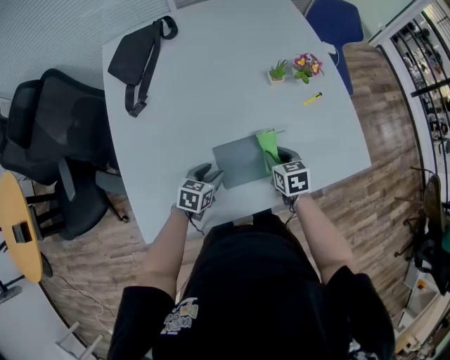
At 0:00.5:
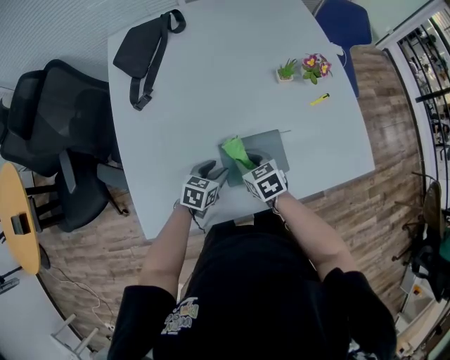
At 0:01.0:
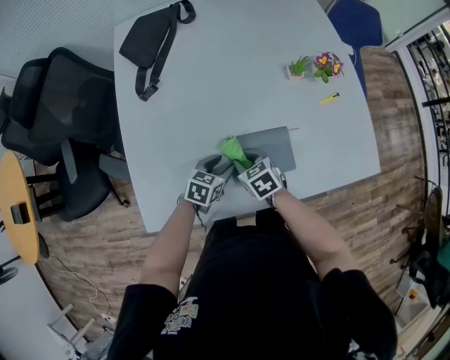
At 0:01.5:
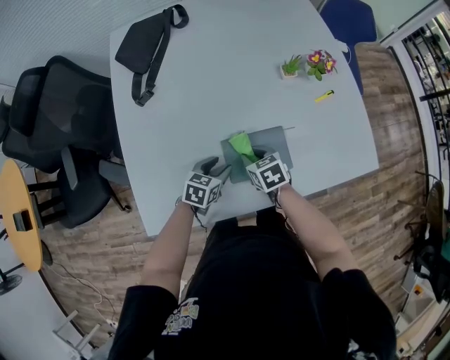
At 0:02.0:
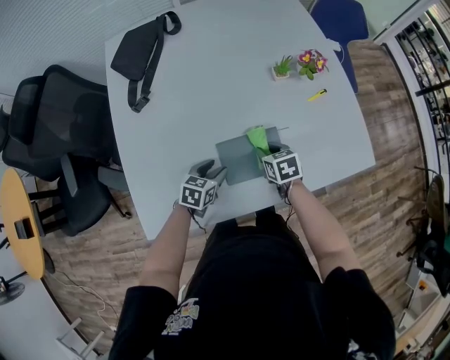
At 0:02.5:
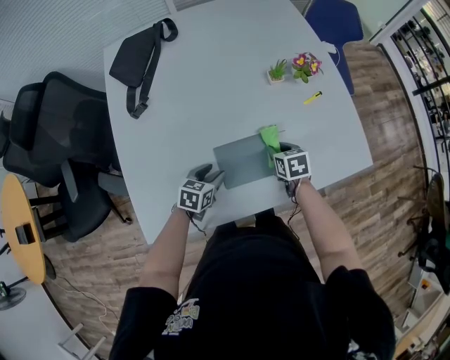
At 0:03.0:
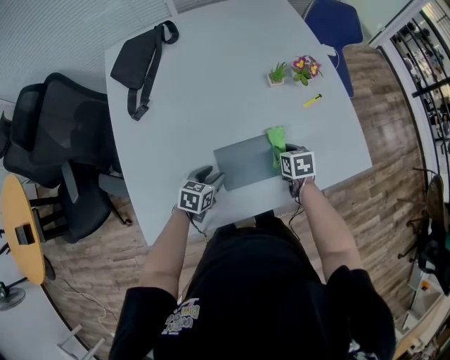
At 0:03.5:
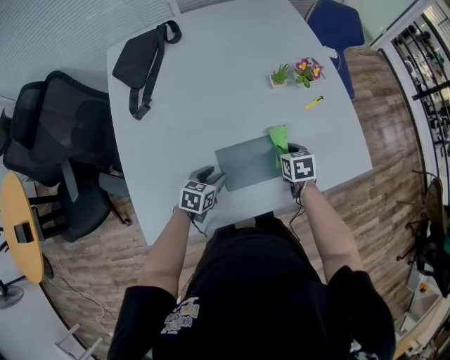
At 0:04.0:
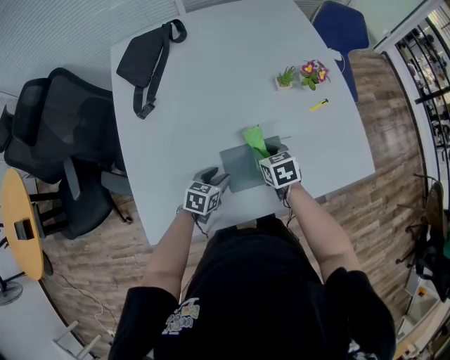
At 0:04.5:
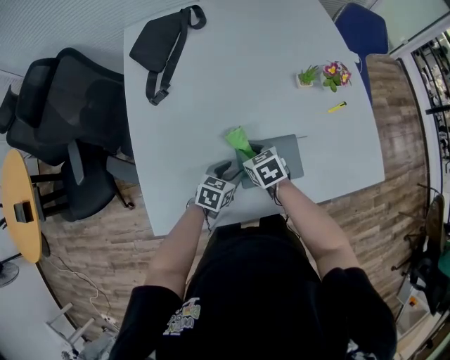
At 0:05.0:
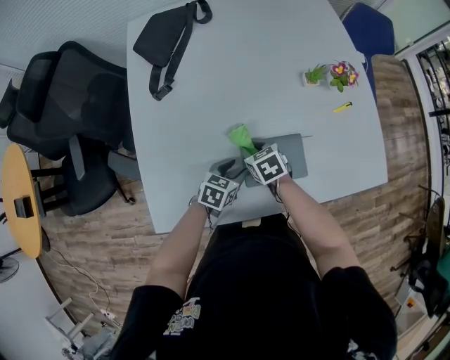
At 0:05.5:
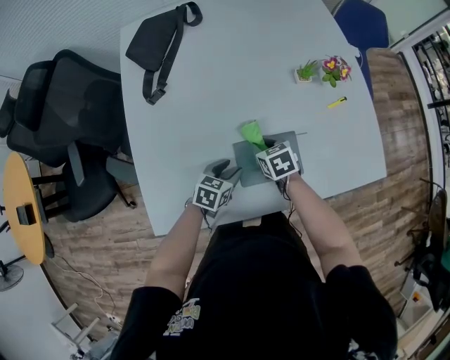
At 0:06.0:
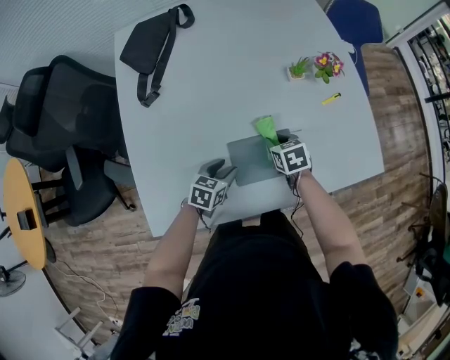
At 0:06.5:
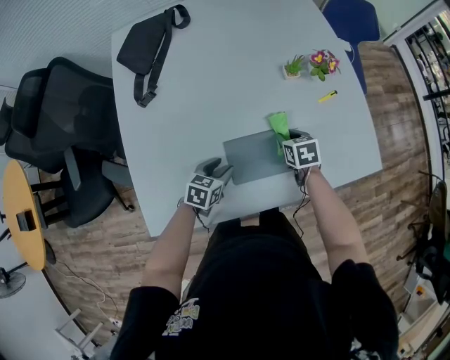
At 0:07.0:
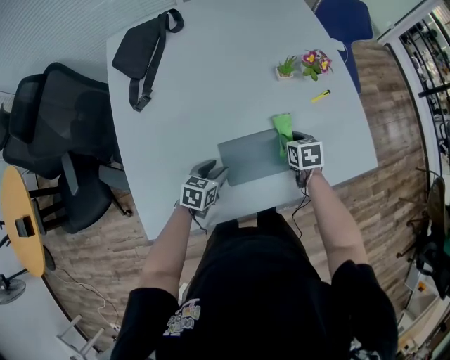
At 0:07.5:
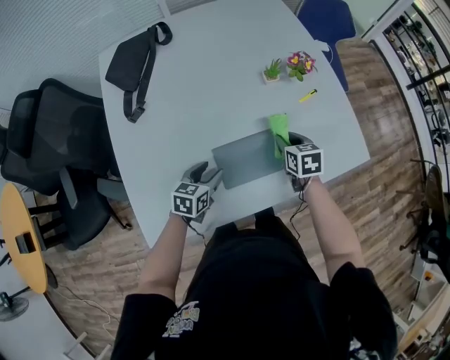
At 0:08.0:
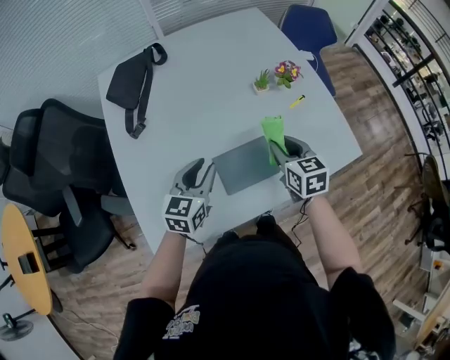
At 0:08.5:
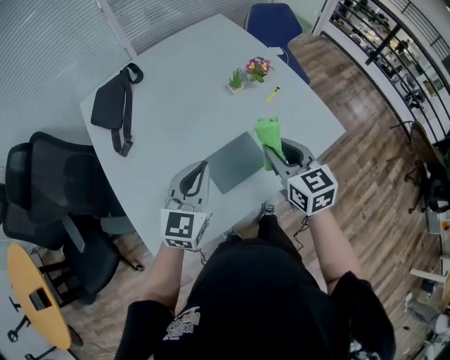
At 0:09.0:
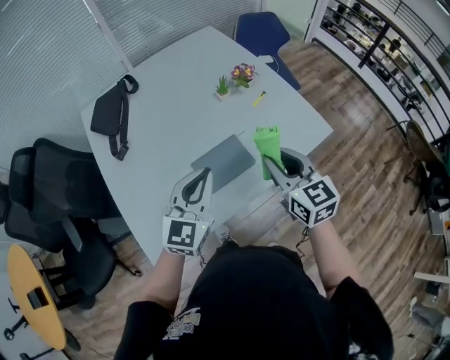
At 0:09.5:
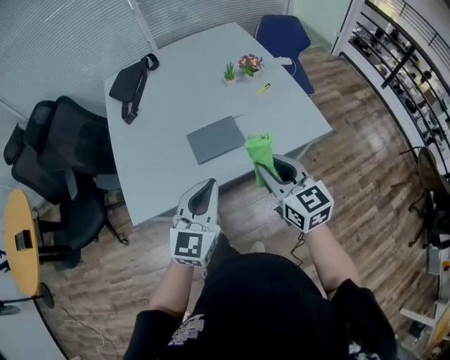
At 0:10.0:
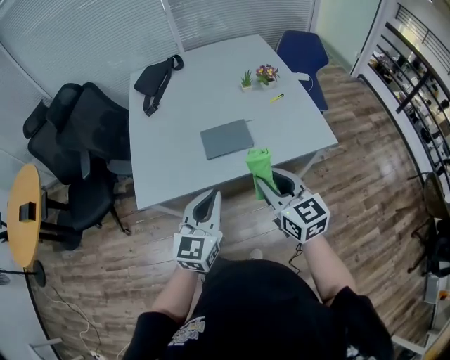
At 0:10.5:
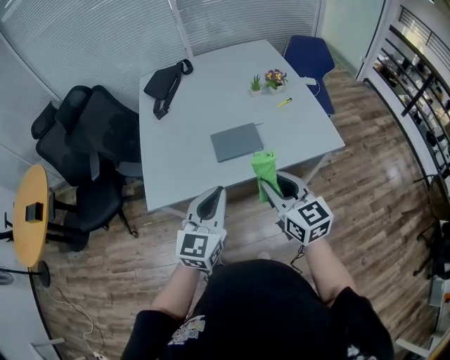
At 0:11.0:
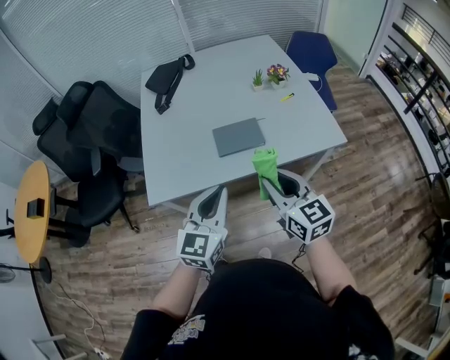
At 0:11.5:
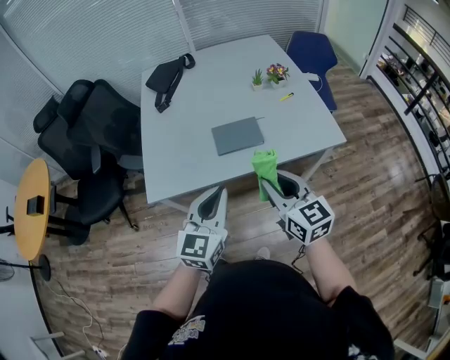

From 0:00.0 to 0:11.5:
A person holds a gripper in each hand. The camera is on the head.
From 0:00.0 to 0:02.0: The right gripper goes to the left and returns, roughly 15 cm each way.
From 0:02.0 to 0:04.0: The right gripper goes to the right and returns, about 10 cm each way.
From 0:04.0 to 0:06.0: The right gripper moves about 10 cm to the left and comes back.
From 0:06.0 to 0:07.5: The right gripper travels to the right and upward by approximately 10 cm.
From 0:07.5 to 0:09.5: The left gripper is displaced upward, backward and to the right by about 35 cm, points its fingers roughly 30 degrees further upward, and closes up. Meanwhile the right gripper moves backward and upward, some 35 cm, and tilts its fingers some 30 degrees upward.
From 0:09.5 to 0:11.5: Both grippers move backward, approximately 10 cm.

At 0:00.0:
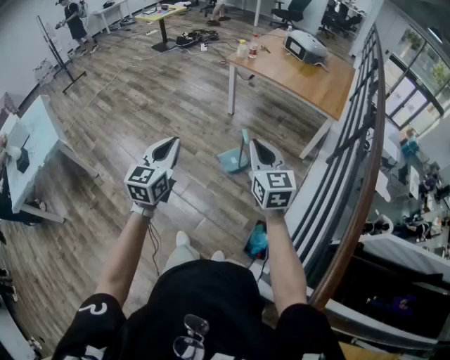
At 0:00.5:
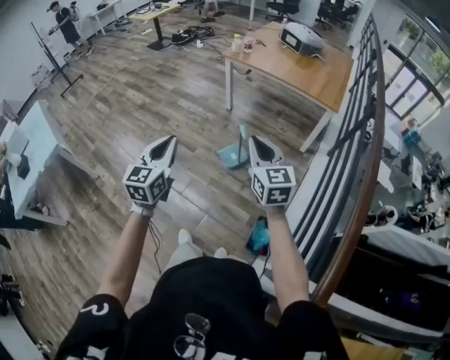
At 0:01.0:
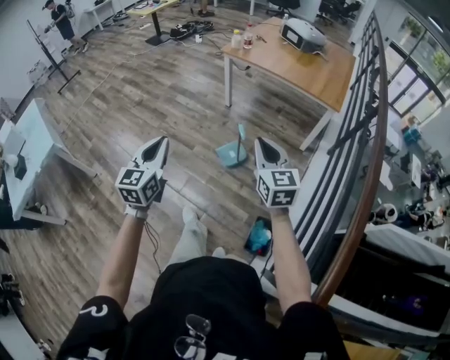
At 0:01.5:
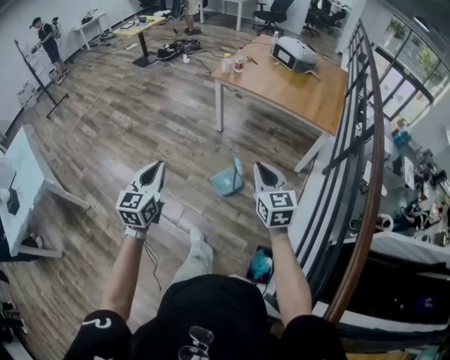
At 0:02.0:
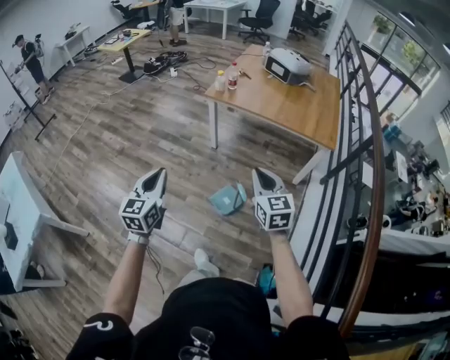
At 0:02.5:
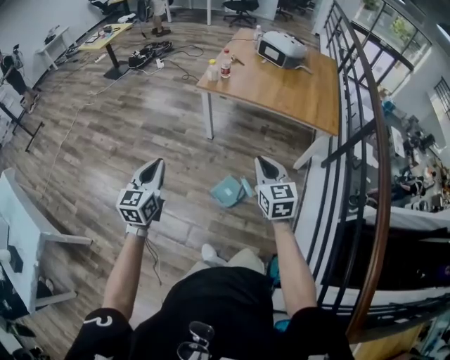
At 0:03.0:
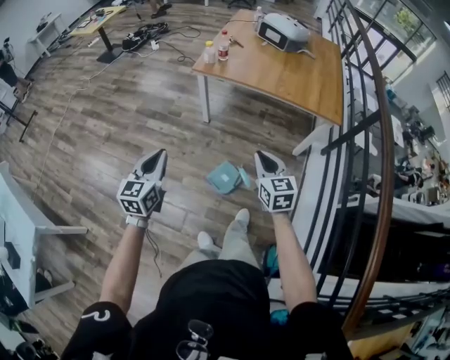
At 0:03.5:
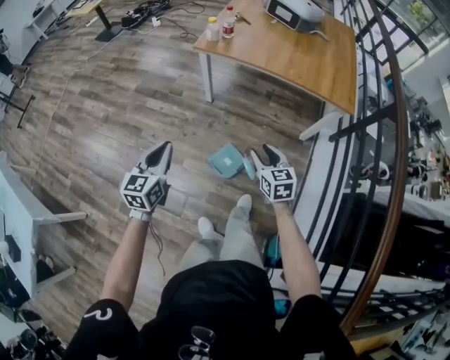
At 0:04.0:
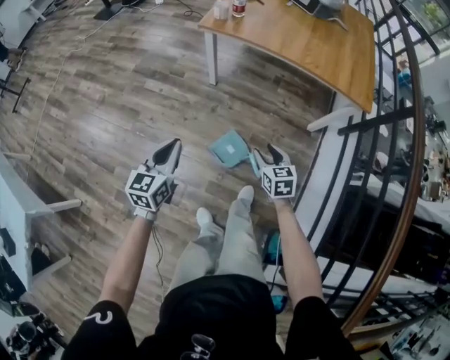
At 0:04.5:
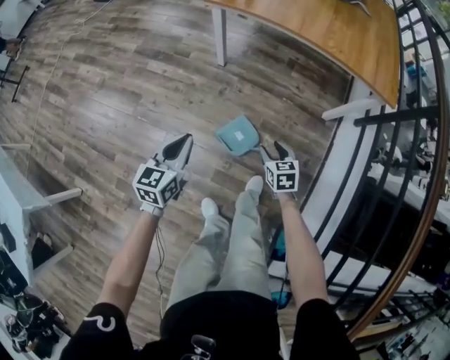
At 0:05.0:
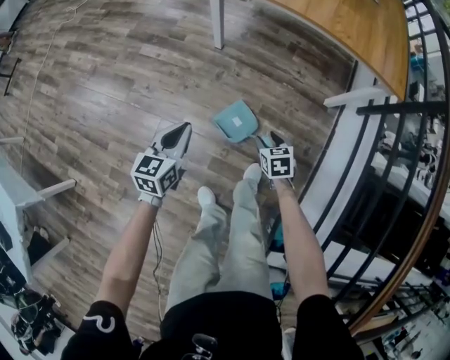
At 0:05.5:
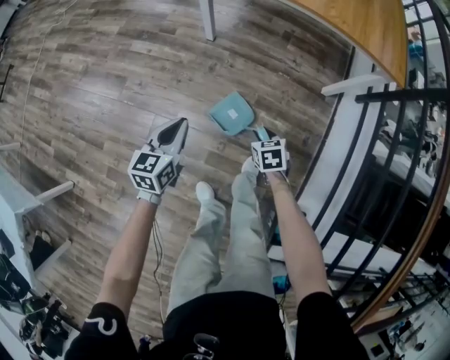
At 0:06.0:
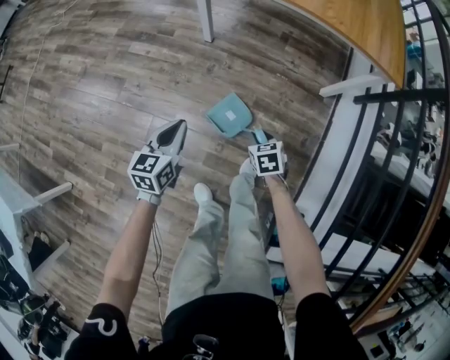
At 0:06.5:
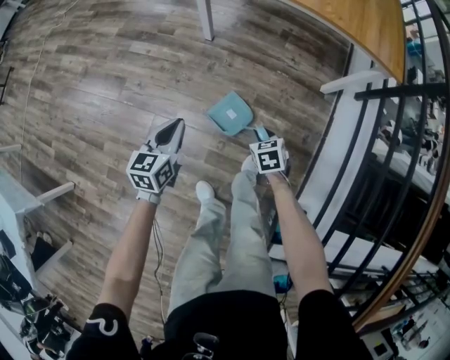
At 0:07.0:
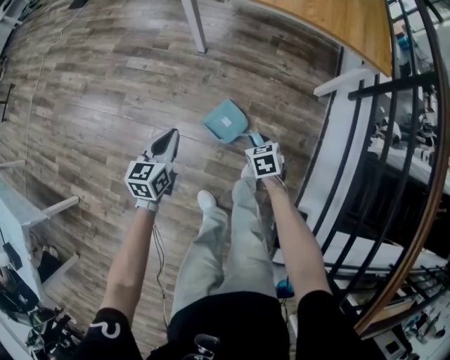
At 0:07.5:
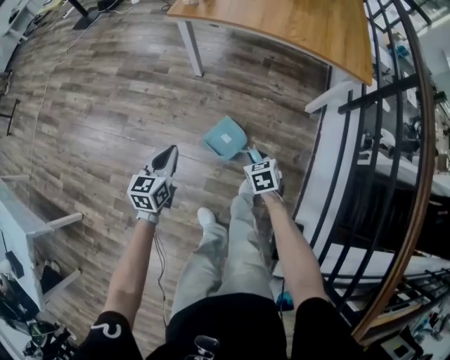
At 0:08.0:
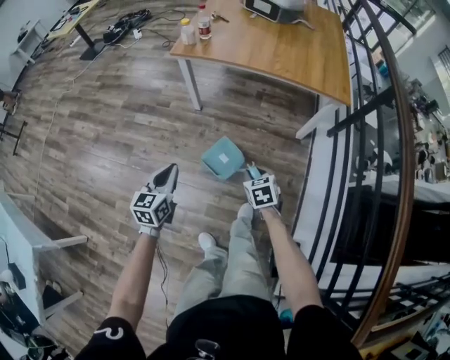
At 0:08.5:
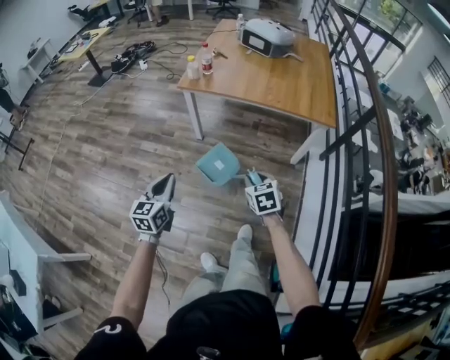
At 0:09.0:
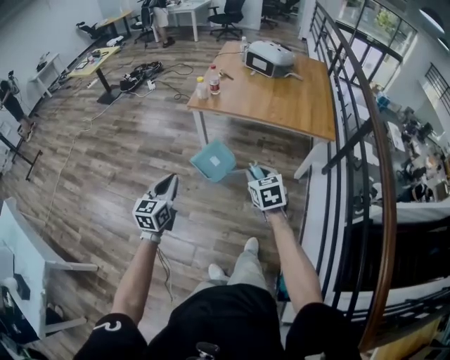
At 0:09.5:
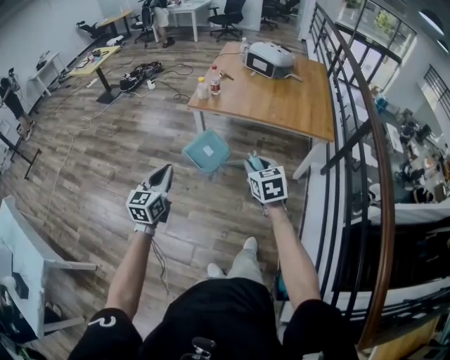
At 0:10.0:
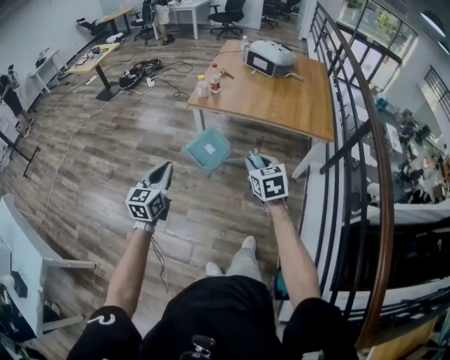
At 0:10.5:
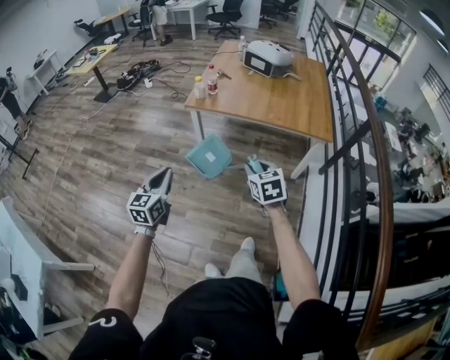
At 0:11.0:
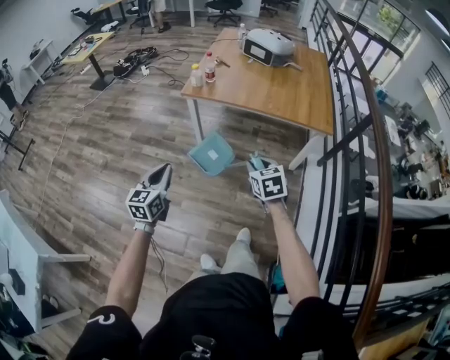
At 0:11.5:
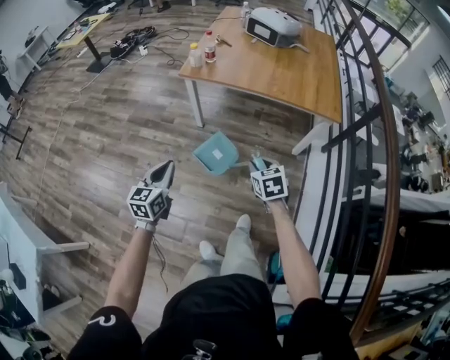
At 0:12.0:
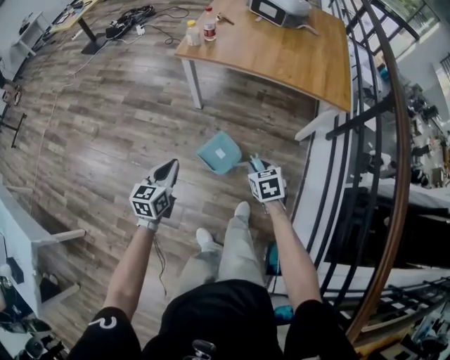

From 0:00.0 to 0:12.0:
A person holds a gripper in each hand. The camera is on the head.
From 0:00.0 to 0:02.0: The grippers both shift forward by some 30 cm.
From 0:02.0 to 0:04.0: The grippers both shift downward and forward by approximately 35 cm. The right gripper rotates some 30 degrees, and opens.
From 0:04.0 to 0:06.0: Both grippers travel together downward, approximately 20 cm. The right gripper changes its angle by approximately 20 degrees, and closes up.
From 0:06.0 to 0:08.0: Both grippers move upward, about 15 cm.
From 0:08.0 to 0:10.0: Both grippers travel together upward, some 25 cm. The right gripper swivels roughly 20 degrees.
From 0:10.0 to 0:12.0: The two grippers go some 20 cm downward. The right gripper changes its angle by some 20 degrees.

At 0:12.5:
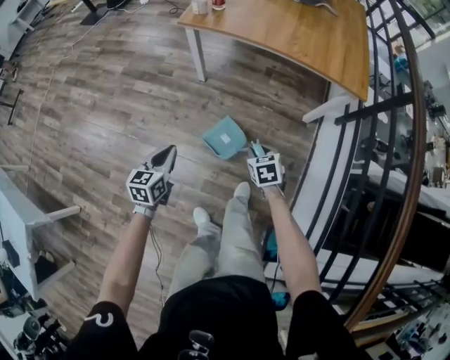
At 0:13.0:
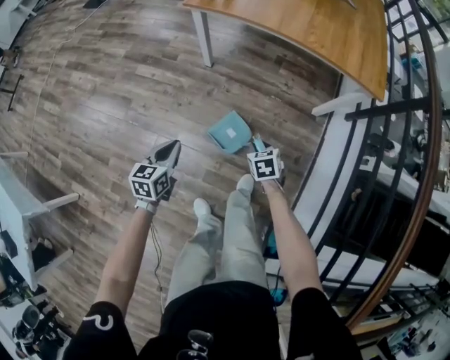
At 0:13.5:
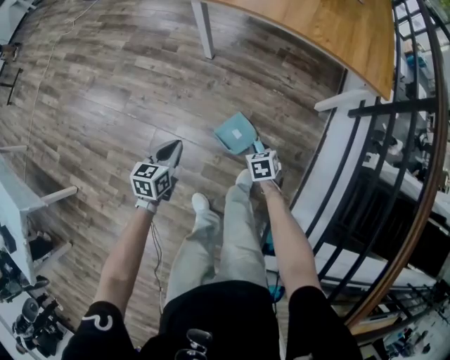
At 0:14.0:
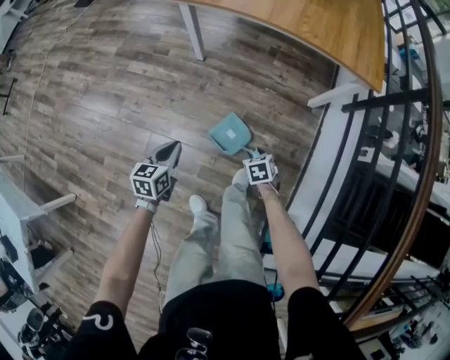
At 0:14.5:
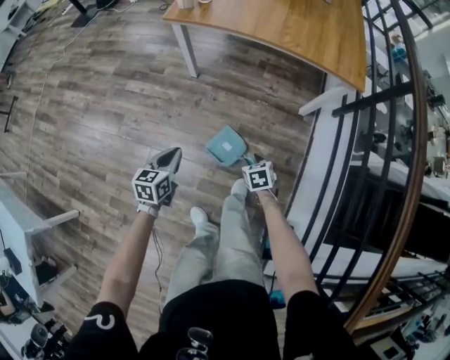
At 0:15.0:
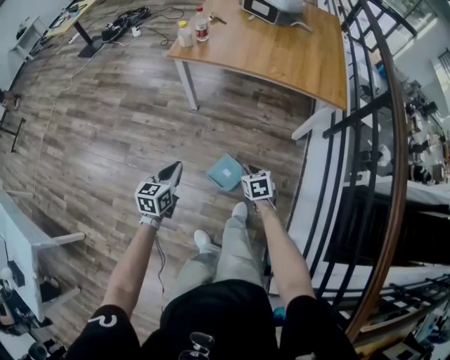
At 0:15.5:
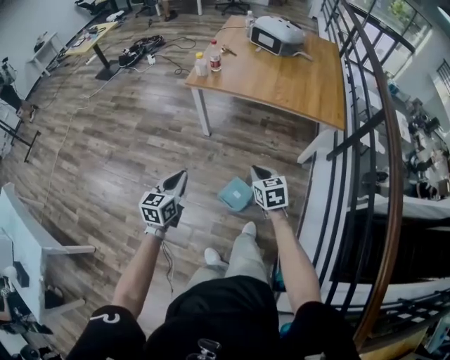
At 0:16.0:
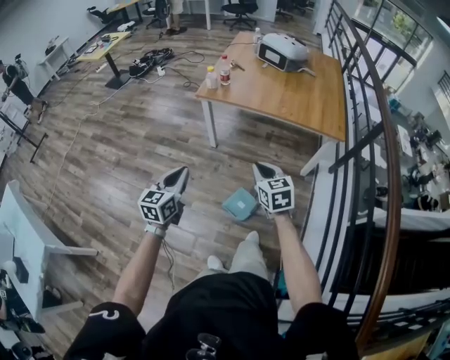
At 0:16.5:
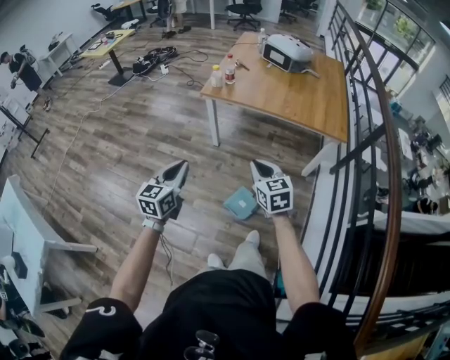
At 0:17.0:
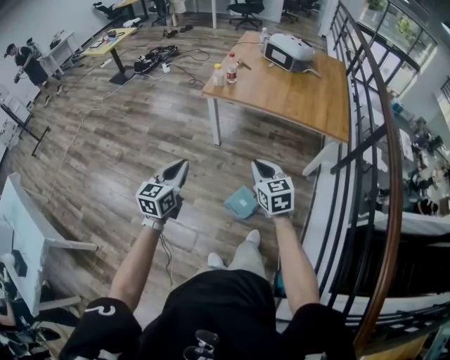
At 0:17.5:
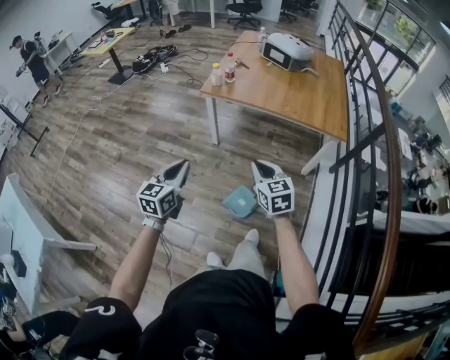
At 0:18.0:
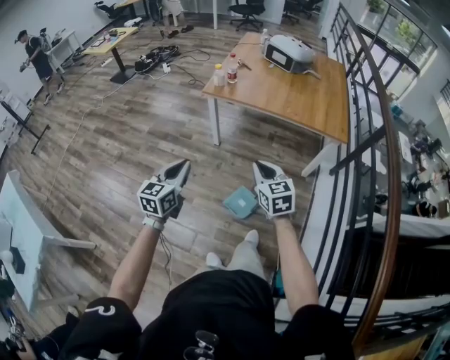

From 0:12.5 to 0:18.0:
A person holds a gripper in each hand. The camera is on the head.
From 0:12.5 to 0:14.5: The right gripper moves downward, approximately 10 cm. Meanwhile the left gripper is displaced downward by about 5 cm.
From 0:14.5 to 0:16.0: The grippers both shift upward by about 35 cm. The left gripper changes its angle by some 20 degrees. The right gripper points its fingers some 30 degrees further upward, and closes.
From 0:16.0 to 0:18.0: There are only small adjustments of the grippers.
